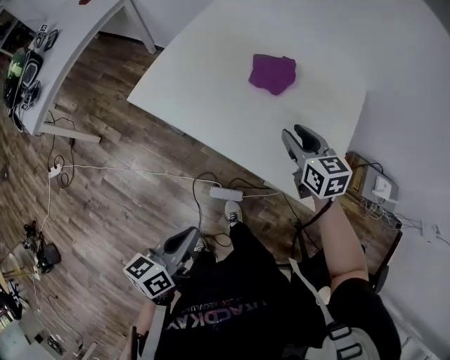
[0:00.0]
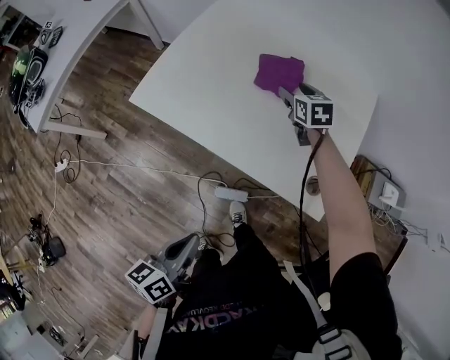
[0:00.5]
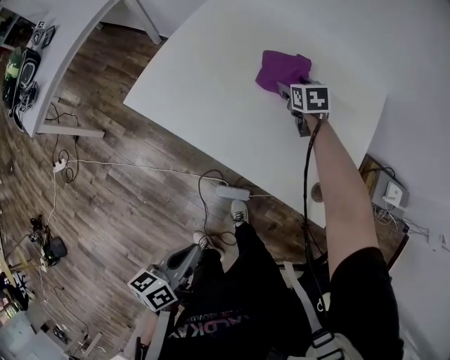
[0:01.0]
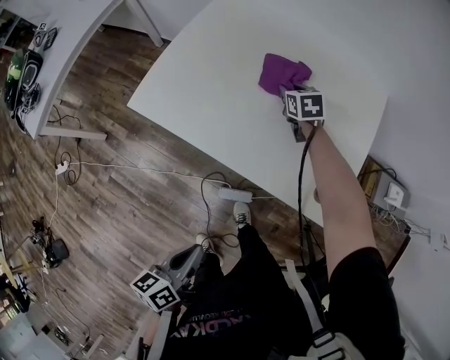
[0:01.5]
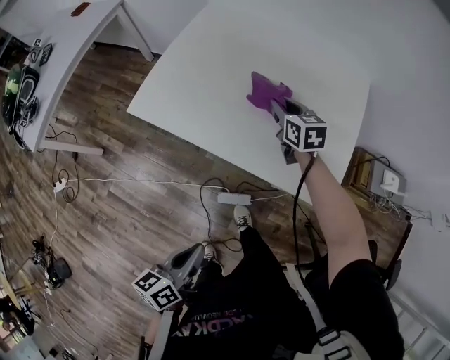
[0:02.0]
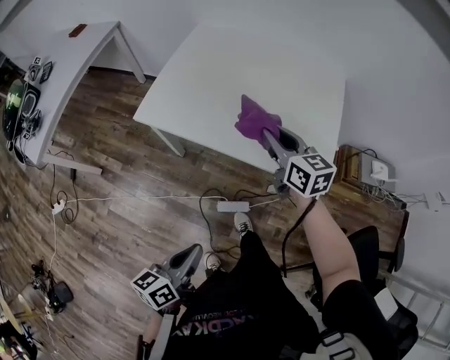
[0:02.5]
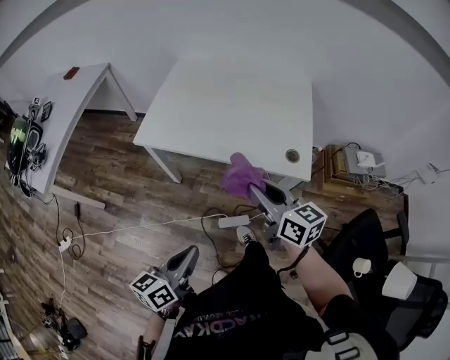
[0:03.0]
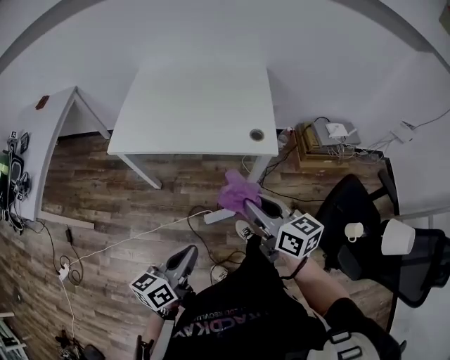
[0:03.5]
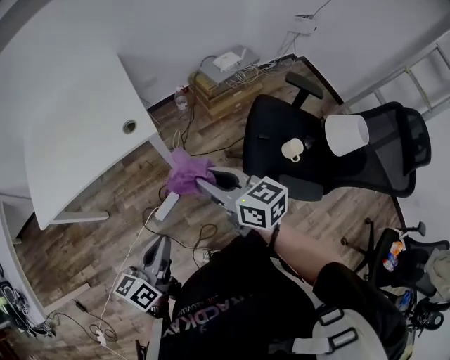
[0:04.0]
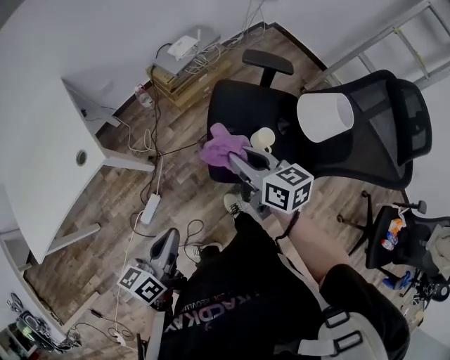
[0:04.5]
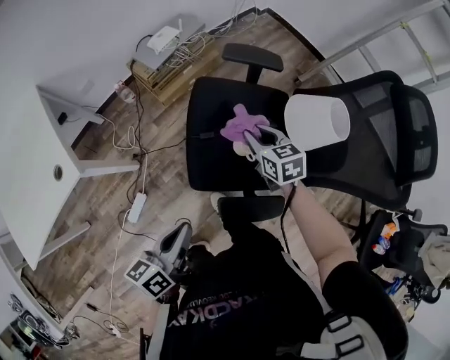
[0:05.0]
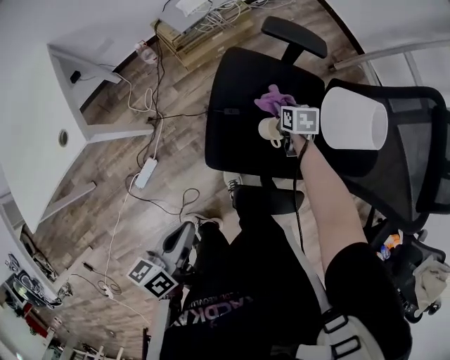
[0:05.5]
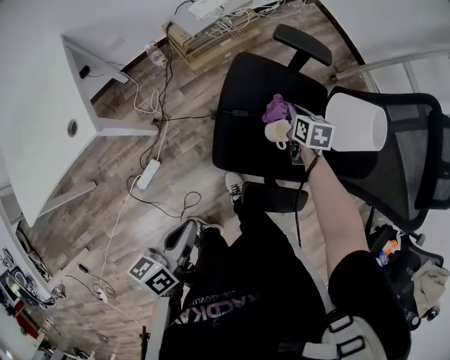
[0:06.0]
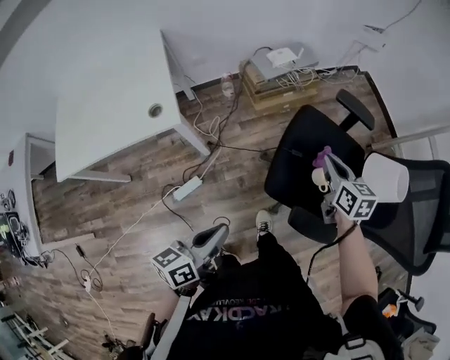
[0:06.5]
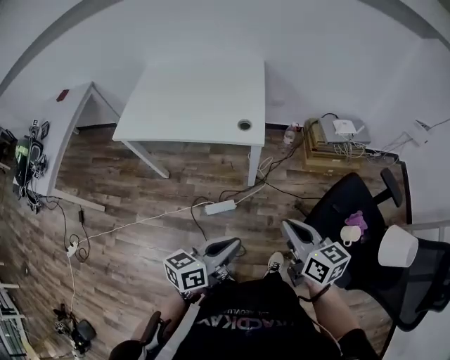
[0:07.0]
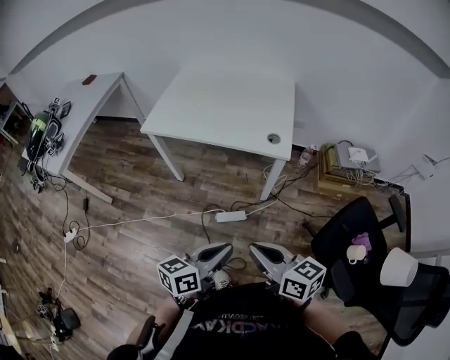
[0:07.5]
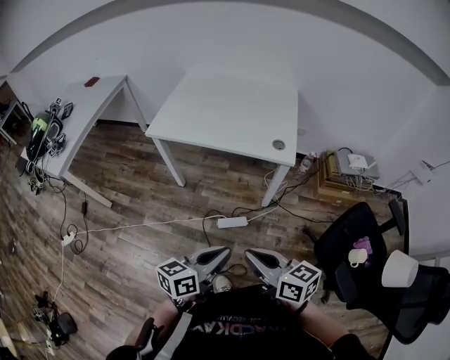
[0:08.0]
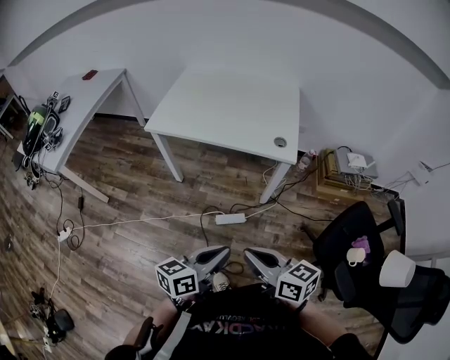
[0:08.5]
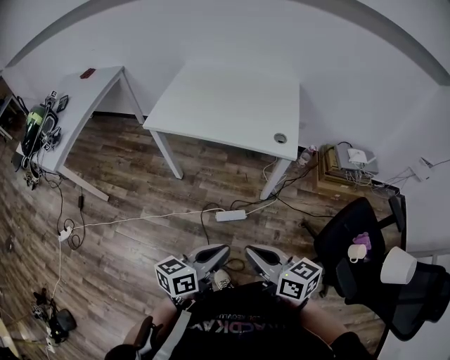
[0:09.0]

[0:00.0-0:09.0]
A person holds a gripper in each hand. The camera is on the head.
0:00.0 to 0:02.0: The right gripper heads forward, to the left and downward, covering about 10 cm.
0:02.0 to 0:04.5: Both grippers are carried about 60 cm. The right gripper changes its angle by some 60 degrees; the left gripper changes its angle by about 60 degrees.
0:04.5 to 0:07.0: The left gripper reaches roughly 5 cm downward, then returns, and changes its angle by roughly 20 degrees; the right gripper reaches roughly 30 cm downward, then returns, turns by about 40 degrees, and closes.
0:07.0 to 0:09.0: Both grippers travel together to the left, about 20 cm. The right gripper changes its angle by approximately 20 degrees.

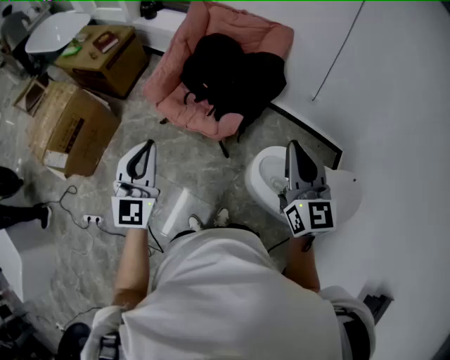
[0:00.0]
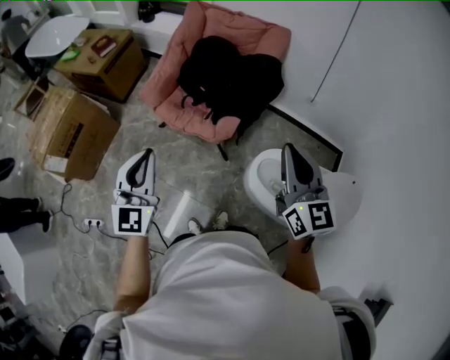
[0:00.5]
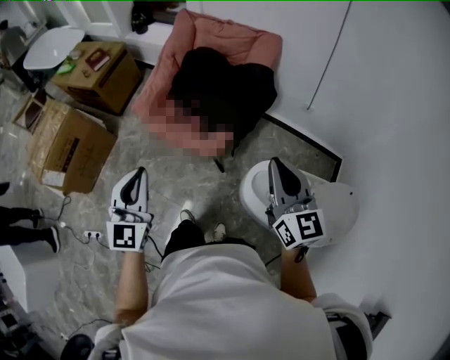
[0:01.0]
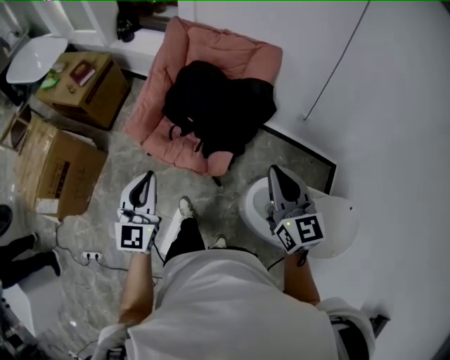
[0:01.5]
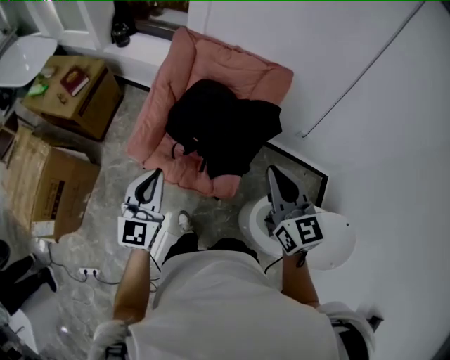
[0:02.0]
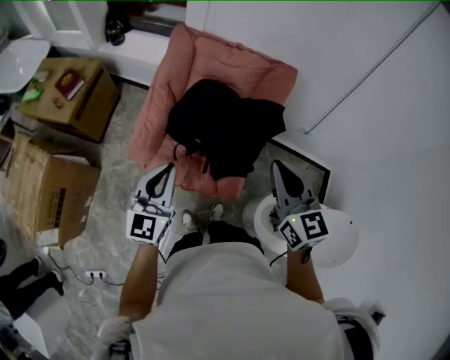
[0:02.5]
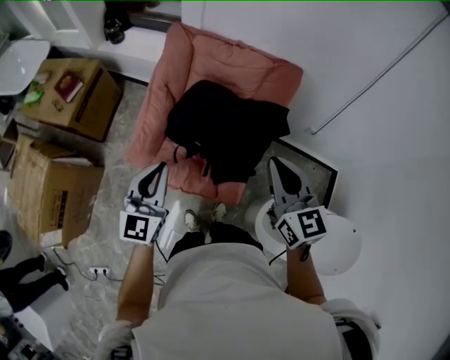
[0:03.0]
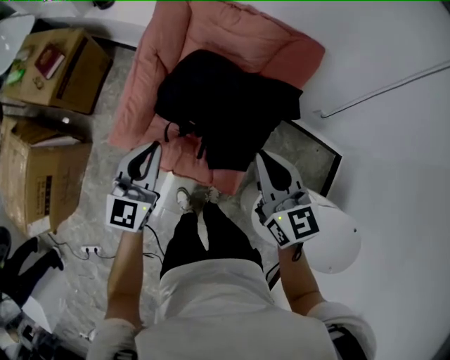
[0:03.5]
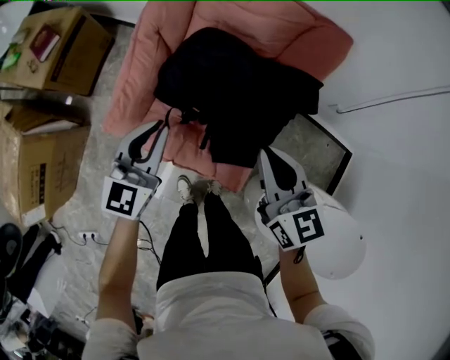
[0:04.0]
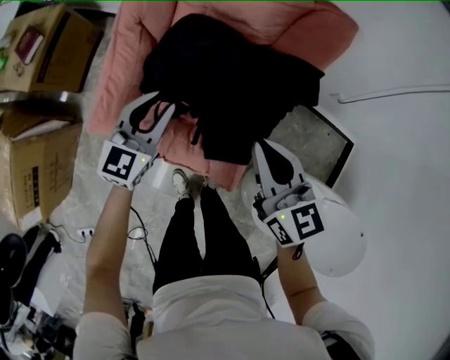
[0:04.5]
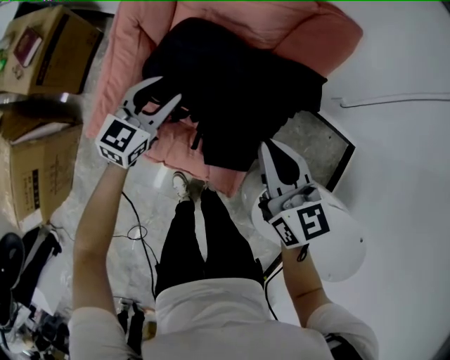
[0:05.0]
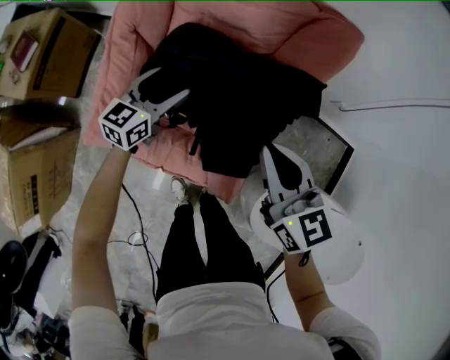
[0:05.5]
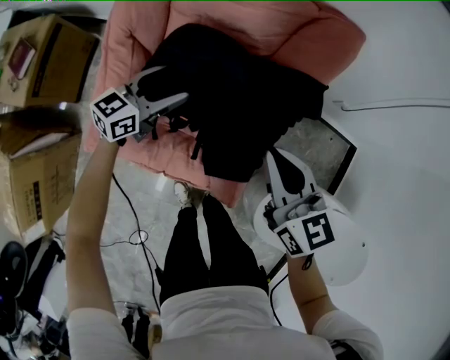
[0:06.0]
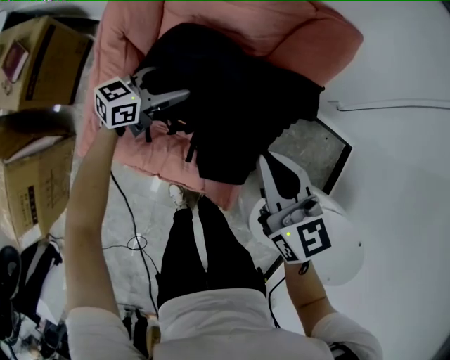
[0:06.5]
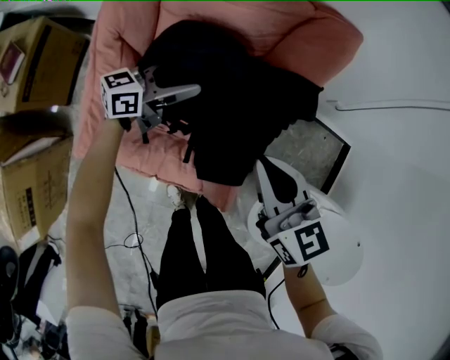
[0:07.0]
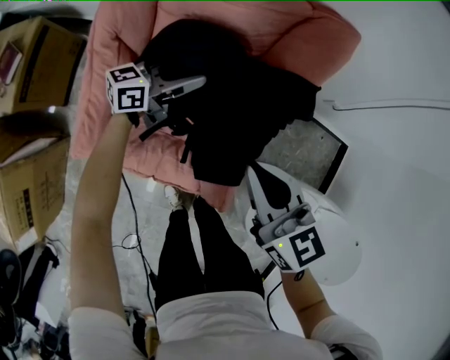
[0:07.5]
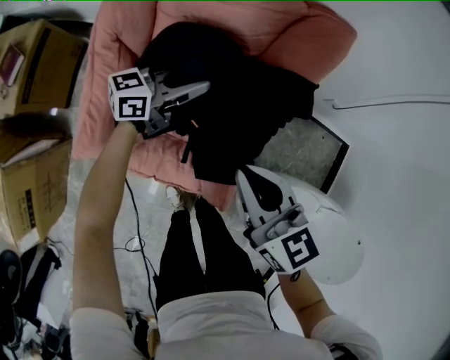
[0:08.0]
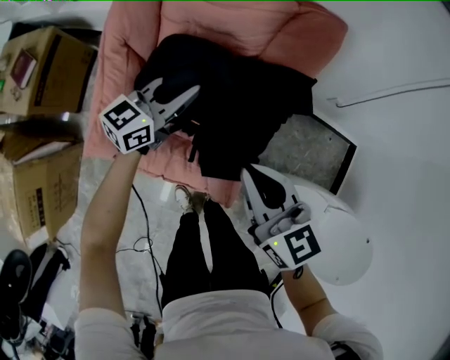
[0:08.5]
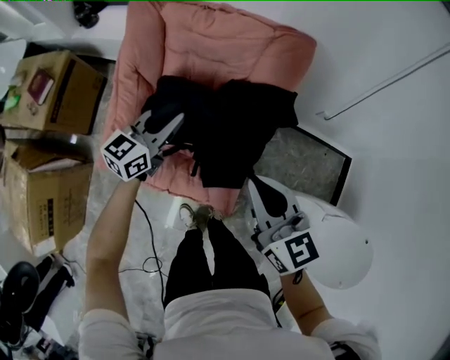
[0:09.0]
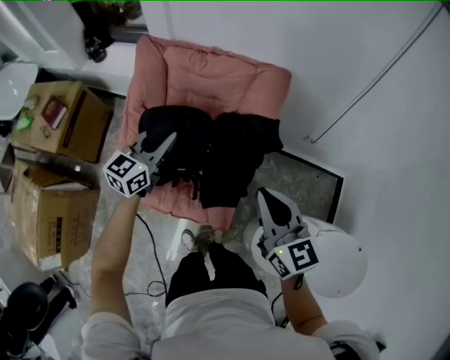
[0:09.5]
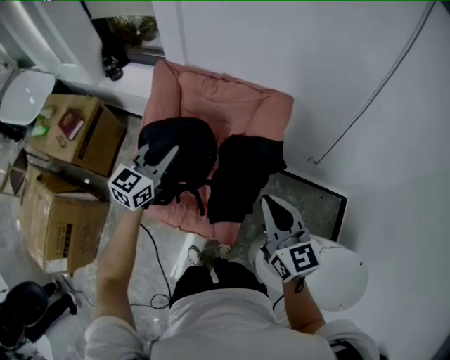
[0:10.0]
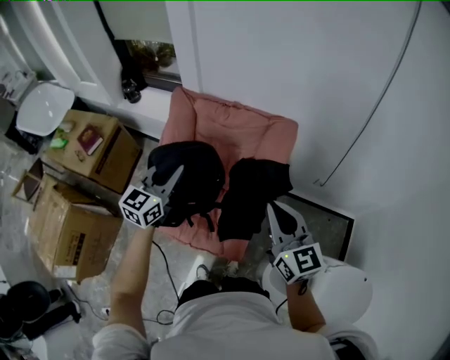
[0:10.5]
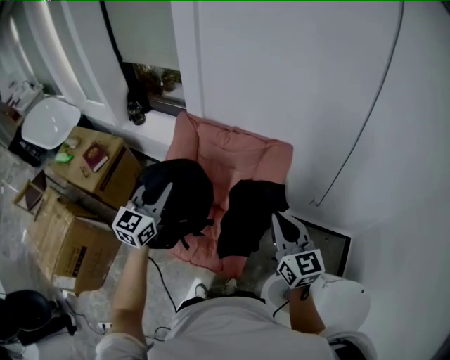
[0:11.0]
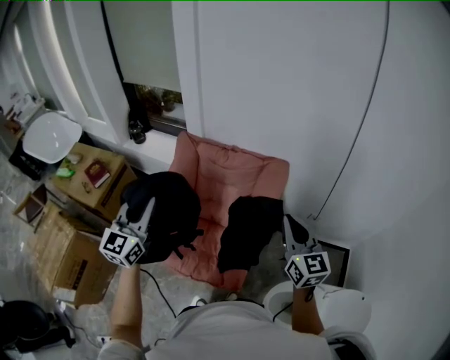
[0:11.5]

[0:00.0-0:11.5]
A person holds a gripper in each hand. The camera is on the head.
0:00.0 to 0:02.0: Both grippers travel together forward, approximately 25 cm.
0:02.0 to 0:04.0: The right gripper moves downward and forward, roughly 25 cm. The left gripper goes roughly 25 cm forward and downward.
0:04.0 to 0:06.0: The left gripper goes about 20 cm forward and downward, changes its angle by roughly 30 degrees, and opens, while the right gripper goes about 10 cm forward and downward.
0:06.0 to 0:07.5: The left gripper shifts approximately 10 cm to the right and forward, changes its angle by approximately 20 degrees, and closes up.
0:07.5 to 0:09.5: Both grippers travel together upward and backward, approximately 20 cm. The left gripper turns by some 40 degrees, and closes.
0:09.5 to 0:11.5: The left gripper goes some 30 cm upward, backward and to the left, and swivels about 30 degrees; the right gripper goes some 10 cm upward.

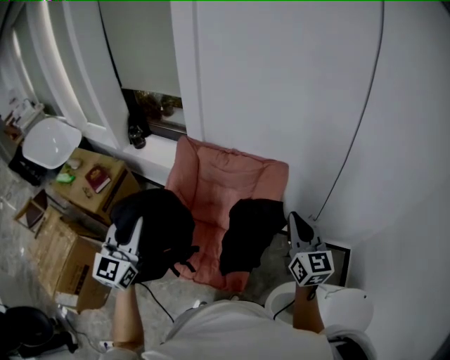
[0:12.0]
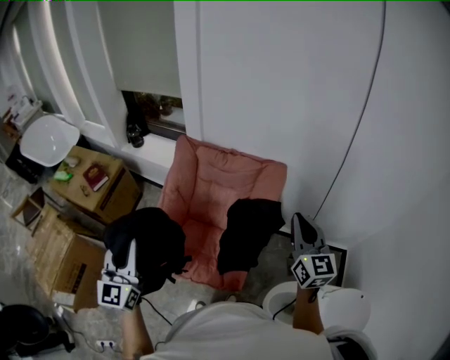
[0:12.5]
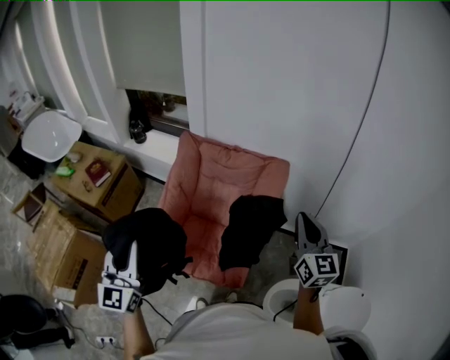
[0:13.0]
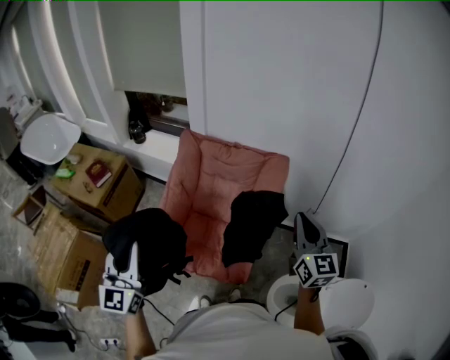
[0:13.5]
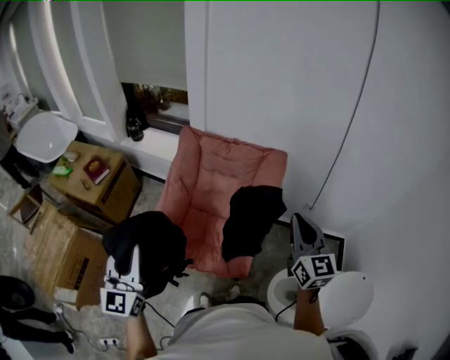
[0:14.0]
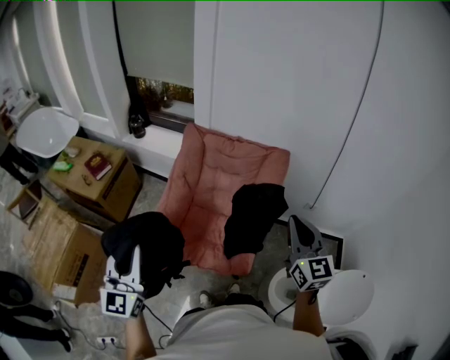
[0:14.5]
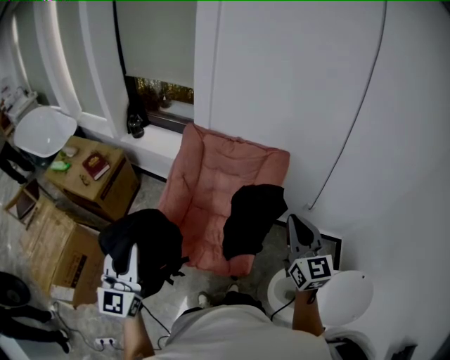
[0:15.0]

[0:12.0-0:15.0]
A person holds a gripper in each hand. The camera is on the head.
0:12.0 to 0:13.5: The right gripper shifts by some 5 cm, while the left gripper is displaced backward by about 10 cm.
0:13.5 to 0:15.0: The right gripper shifts roughly 10 cm to the left. The left gripper moves about 5 cm.

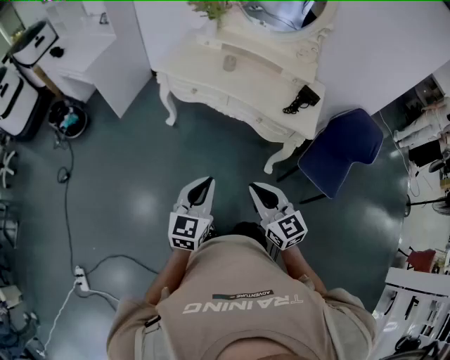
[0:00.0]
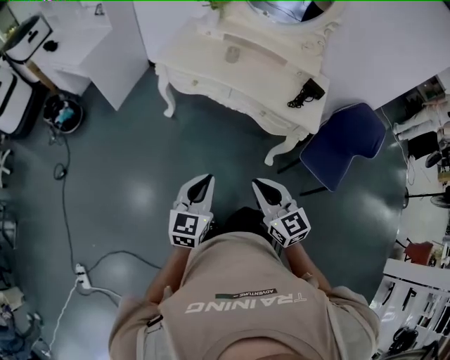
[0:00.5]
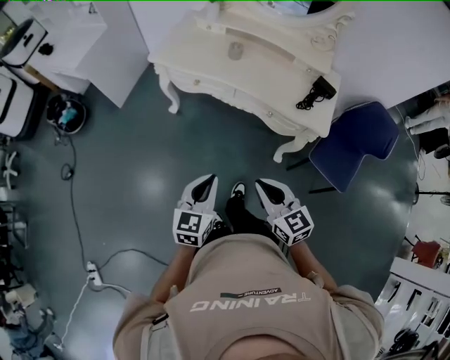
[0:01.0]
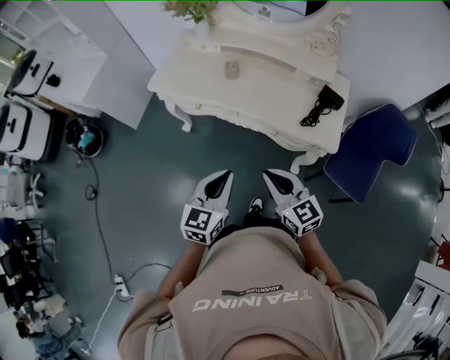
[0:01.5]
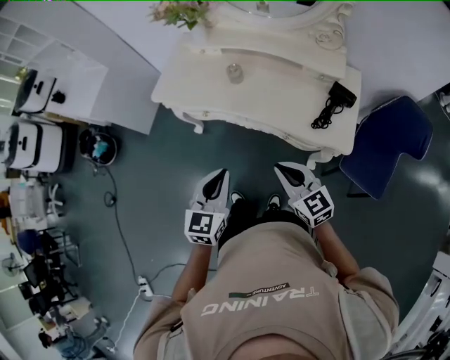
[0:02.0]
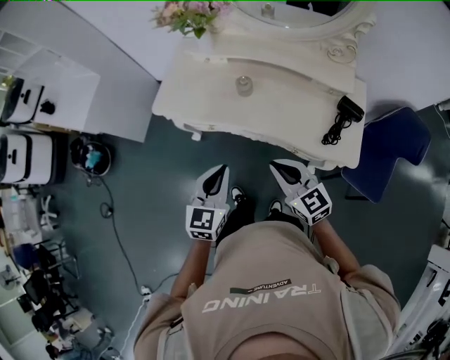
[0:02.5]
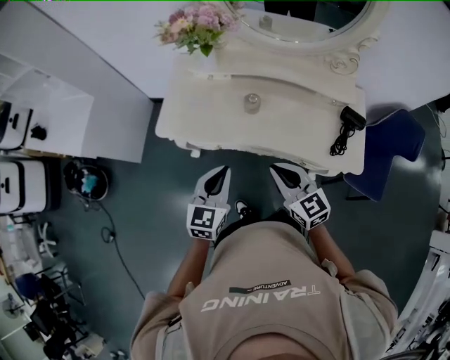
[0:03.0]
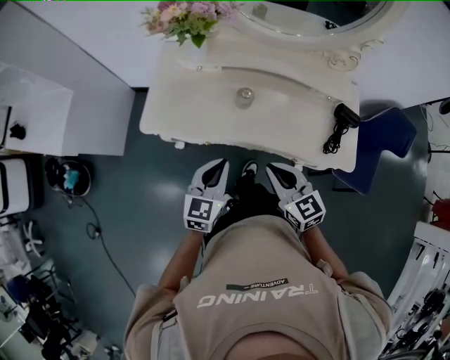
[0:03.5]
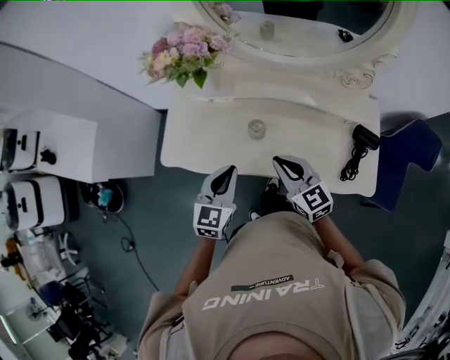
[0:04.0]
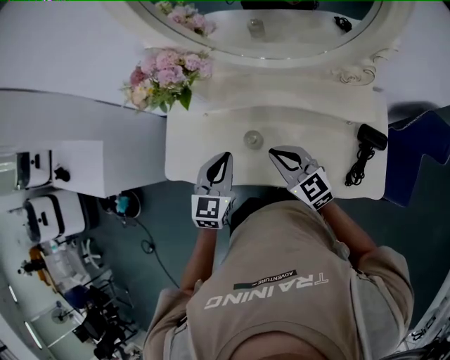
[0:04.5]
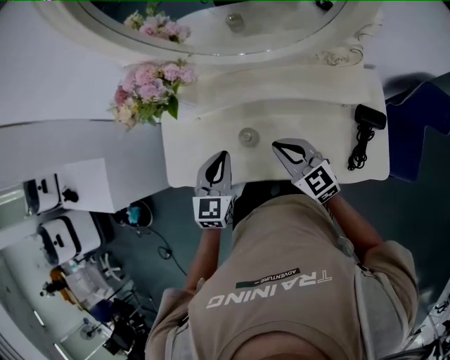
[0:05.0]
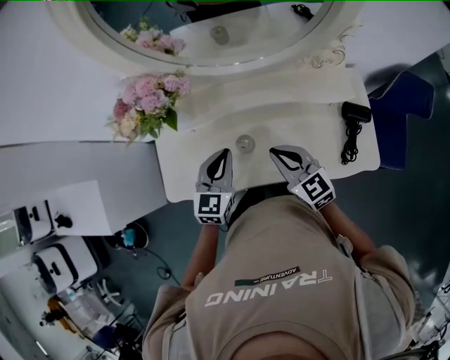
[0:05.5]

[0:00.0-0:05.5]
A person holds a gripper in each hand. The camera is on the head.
0:00.0 to 0:02.0: The two grippers go some 25 cm forward.
0:02.0 to 0:03.5: The right gripper goes about 20 cm forward and to the left. Meanwhile the left gripper is displaced forward by about 20 cm.
0:03.5 to 0:05.5: The two grippers go some 20 cm forward.
